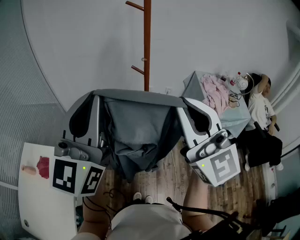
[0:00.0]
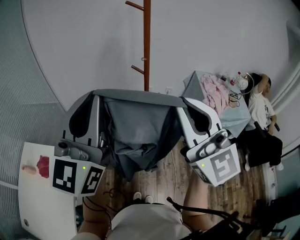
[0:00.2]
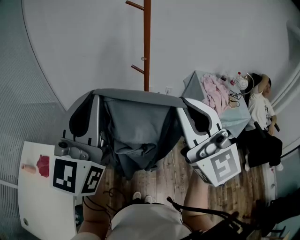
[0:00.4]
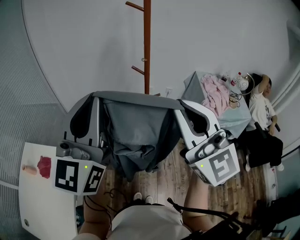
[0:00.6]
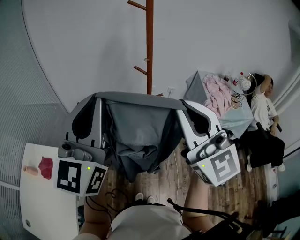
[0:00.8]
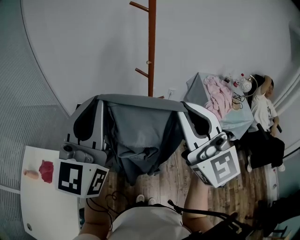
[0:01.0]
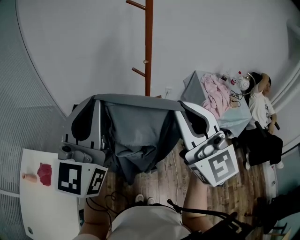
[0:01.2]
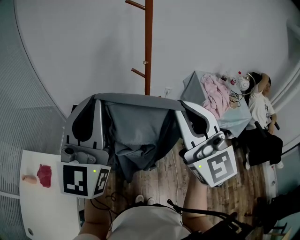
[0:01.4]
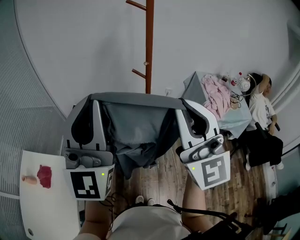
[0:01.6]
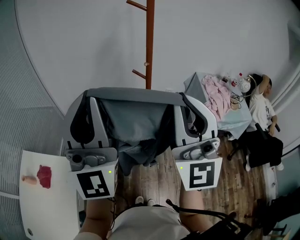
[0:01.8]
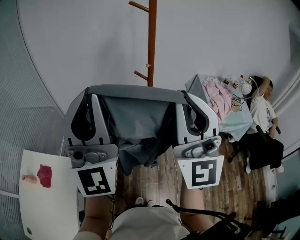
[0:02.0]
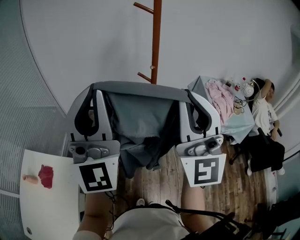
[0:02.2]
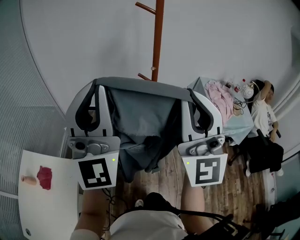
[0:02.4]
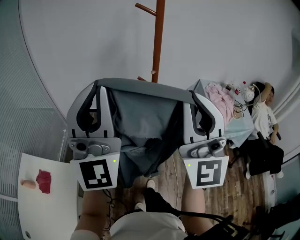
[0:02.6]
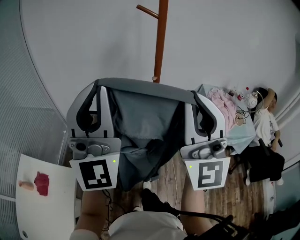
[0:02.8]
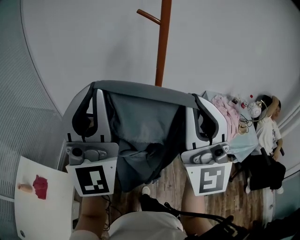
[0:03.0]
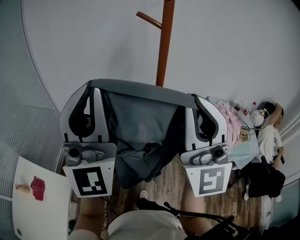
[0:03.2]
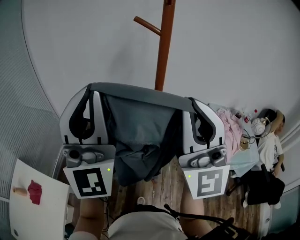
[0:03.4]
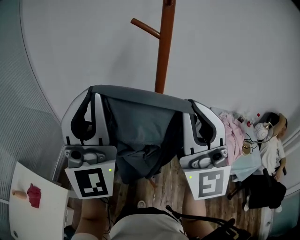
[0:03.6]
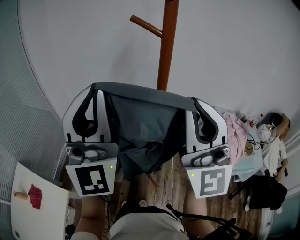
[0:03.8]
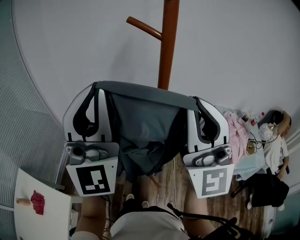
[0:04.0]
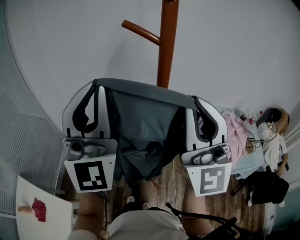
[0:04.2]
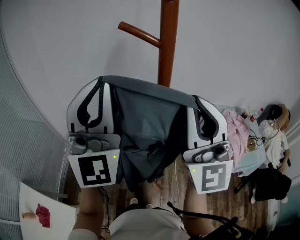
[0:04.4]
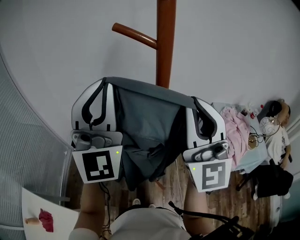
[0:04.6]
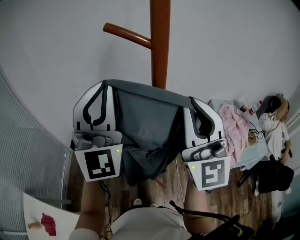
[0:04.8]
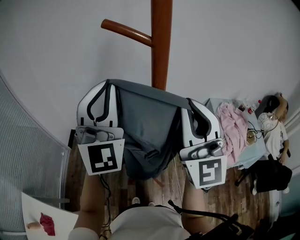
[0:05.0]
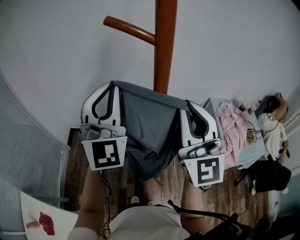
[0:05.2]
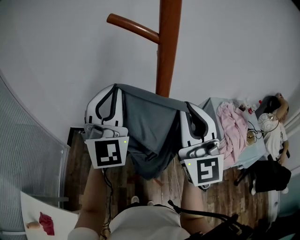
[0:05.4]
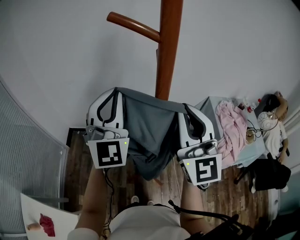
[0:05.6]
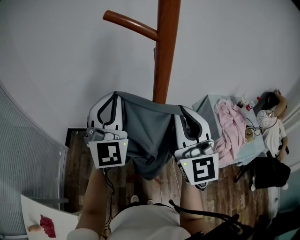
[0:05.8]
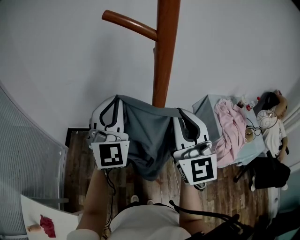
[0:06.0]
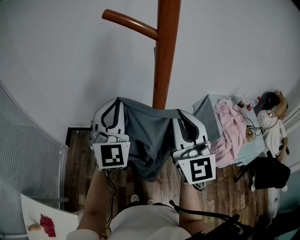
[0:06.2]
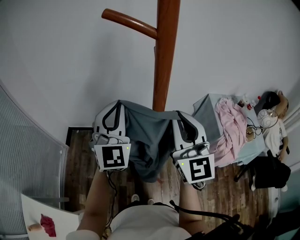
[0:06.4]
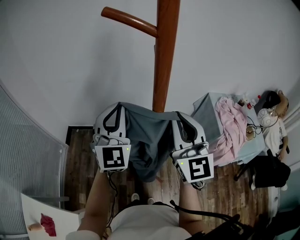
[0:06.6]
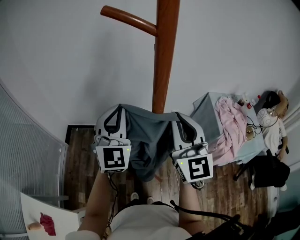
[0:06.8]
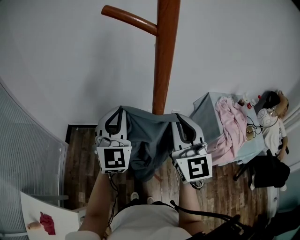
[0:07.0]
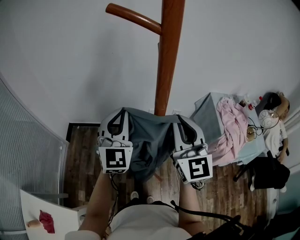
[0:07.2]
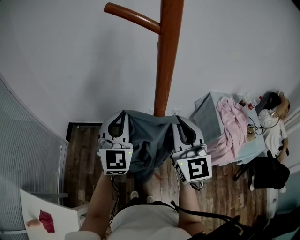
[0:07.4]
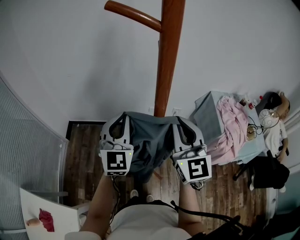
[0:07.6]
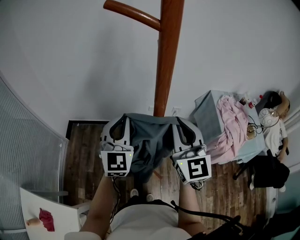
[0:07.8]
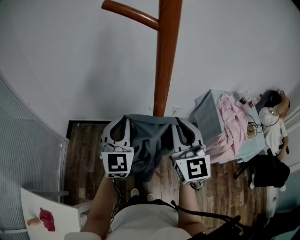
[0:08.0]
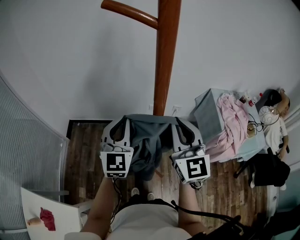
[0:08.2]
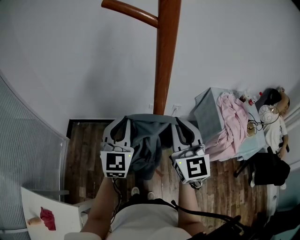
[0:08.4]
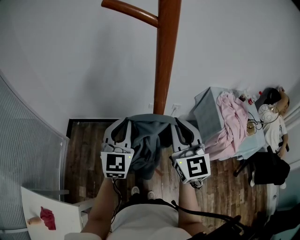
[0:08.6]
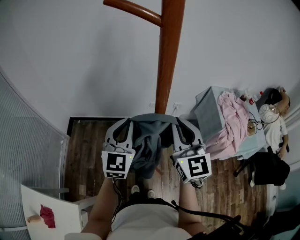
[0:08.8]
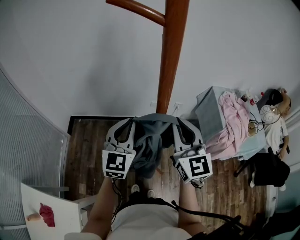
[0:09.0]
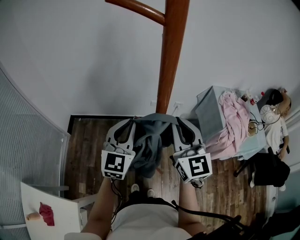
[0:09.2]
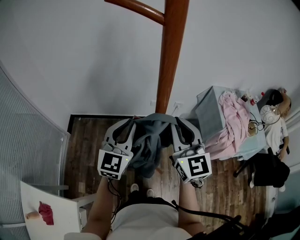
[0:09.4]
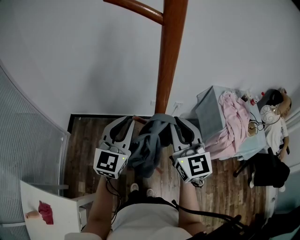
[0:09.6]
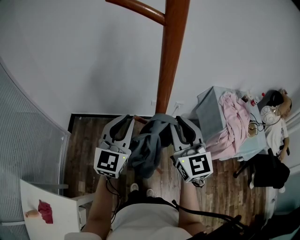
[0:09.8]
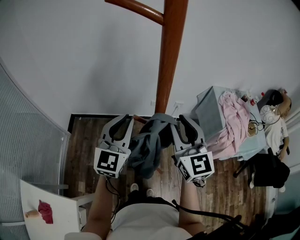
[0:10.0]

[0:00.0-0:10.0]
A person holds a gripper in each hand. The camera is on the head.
0:00.0 to 0:01.4: The grippers stay close to where they were, moving slightly.
0:01.4 to 0:02.8: Both grippers move forward, some 5 cm. The right gripper swivels about 20 degrees. The left gripper turns by some 20 degrees.
0:02.8 to 0:04.2: Both grippers move forward, about 15 cm.
0:04.2 to 0:05.8: The left gripper heads forward and downward, covering roughly 20 cm. Meanwhile the right gripper moves downward and forward, approximately 15 cm.
0:05.8 to 0:07.2: Both grippers move downward, roughly 10 cm.
0:07.2 to 0:08.6: The left gripper shifts roughly 5 cm downward.
0:08.6 to 0:10.0: The right gripper opens its fingers.

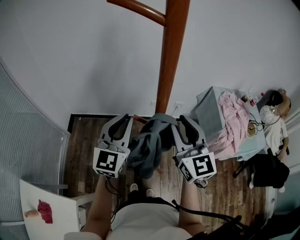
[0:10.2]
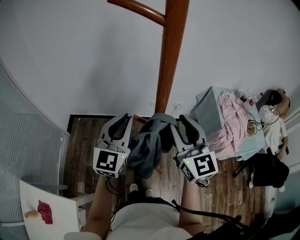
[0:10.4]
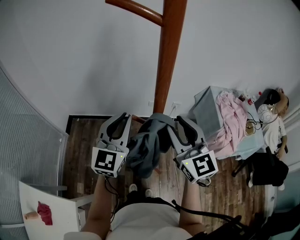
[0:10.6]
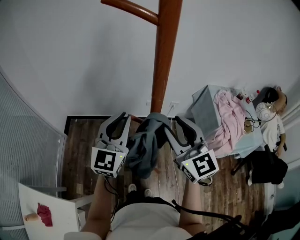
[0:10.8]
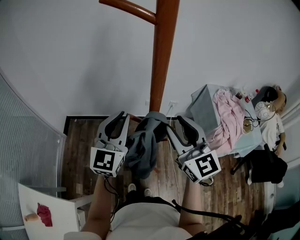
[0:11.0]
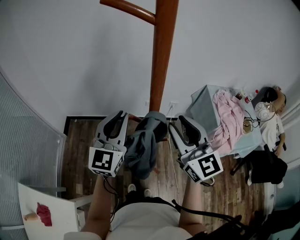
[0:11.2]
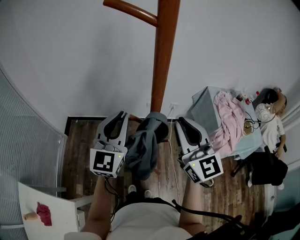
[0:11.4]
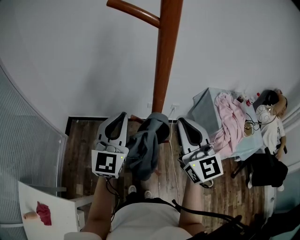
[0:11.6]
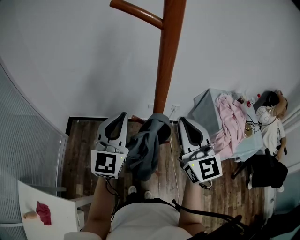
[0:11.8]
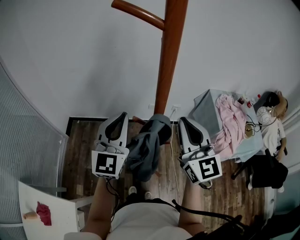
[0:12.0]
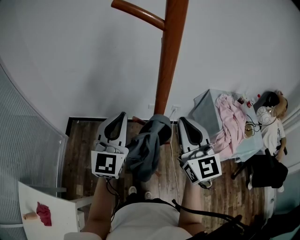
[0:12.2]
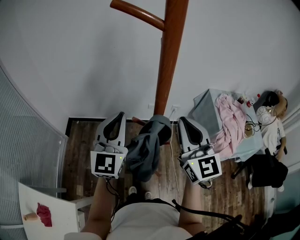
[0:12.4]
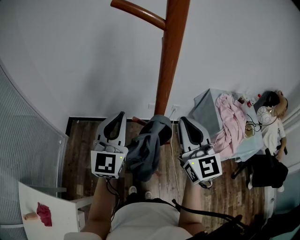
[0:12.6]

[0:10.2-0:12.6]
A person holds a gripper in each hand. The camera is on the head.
0:10.2 to 0:12.6: The grippers move only a little.

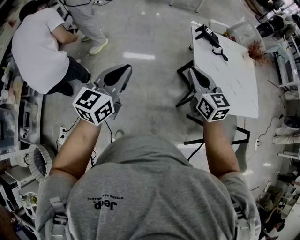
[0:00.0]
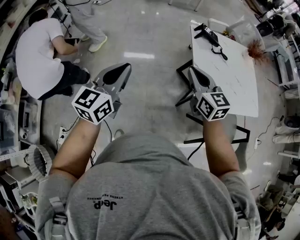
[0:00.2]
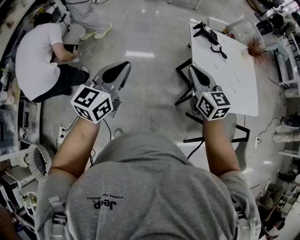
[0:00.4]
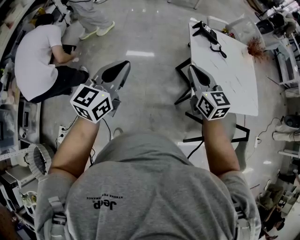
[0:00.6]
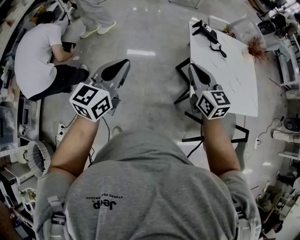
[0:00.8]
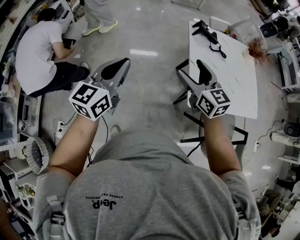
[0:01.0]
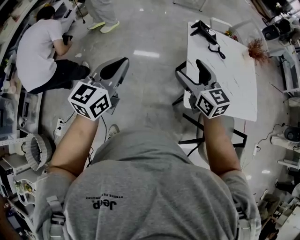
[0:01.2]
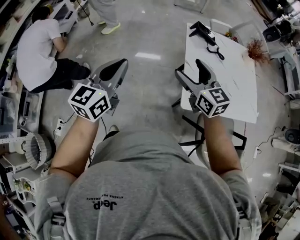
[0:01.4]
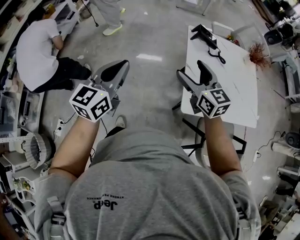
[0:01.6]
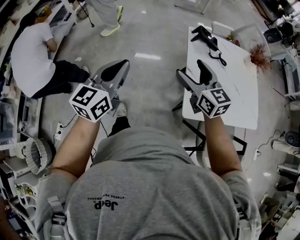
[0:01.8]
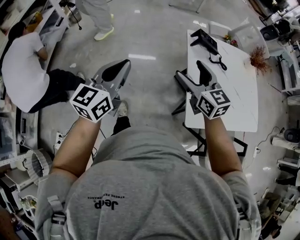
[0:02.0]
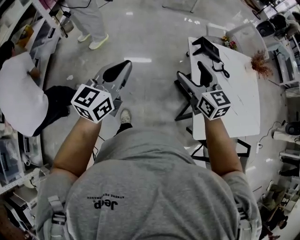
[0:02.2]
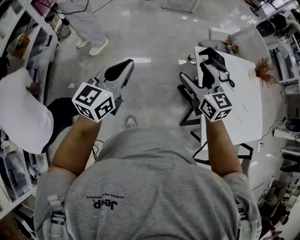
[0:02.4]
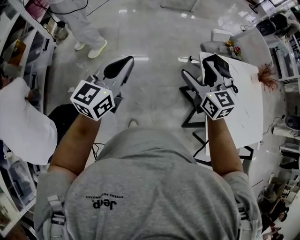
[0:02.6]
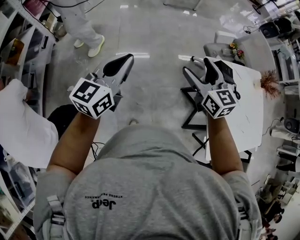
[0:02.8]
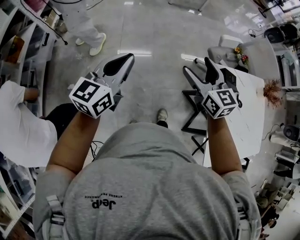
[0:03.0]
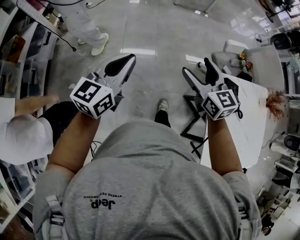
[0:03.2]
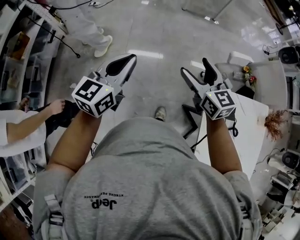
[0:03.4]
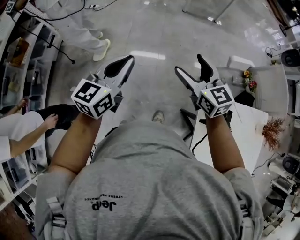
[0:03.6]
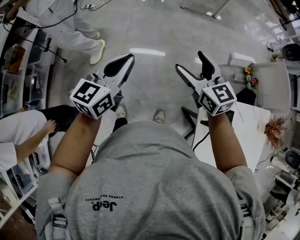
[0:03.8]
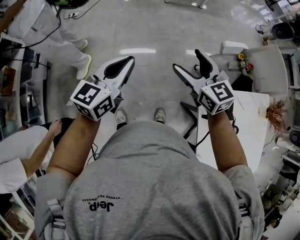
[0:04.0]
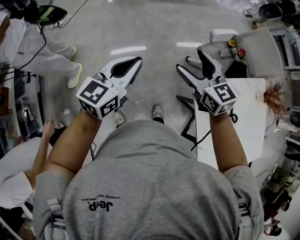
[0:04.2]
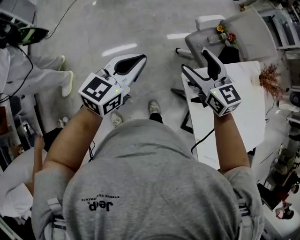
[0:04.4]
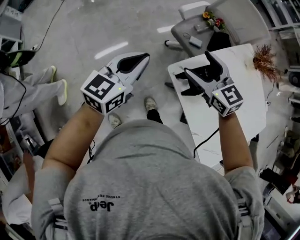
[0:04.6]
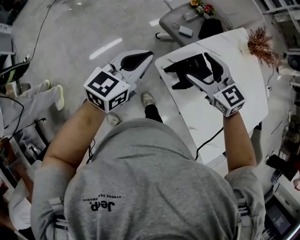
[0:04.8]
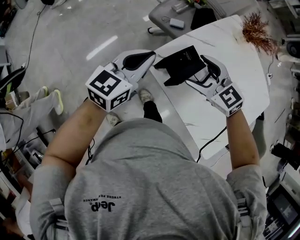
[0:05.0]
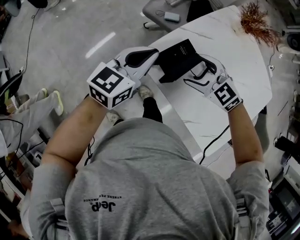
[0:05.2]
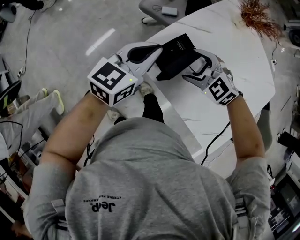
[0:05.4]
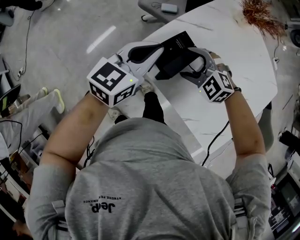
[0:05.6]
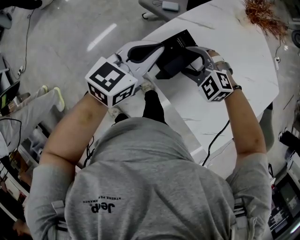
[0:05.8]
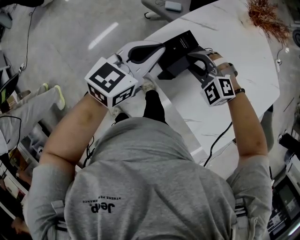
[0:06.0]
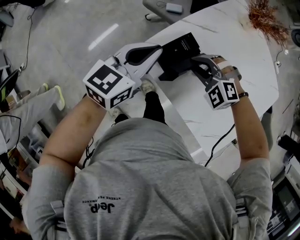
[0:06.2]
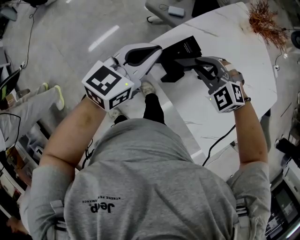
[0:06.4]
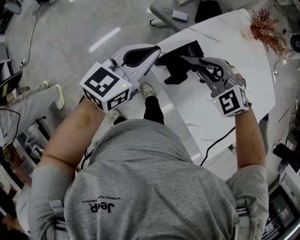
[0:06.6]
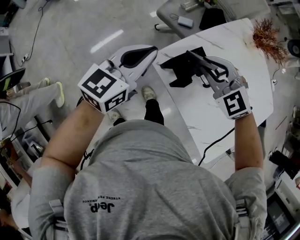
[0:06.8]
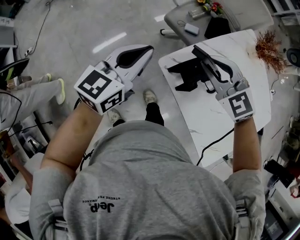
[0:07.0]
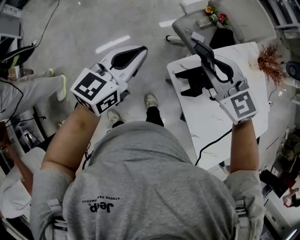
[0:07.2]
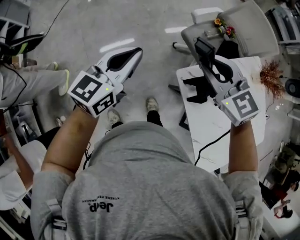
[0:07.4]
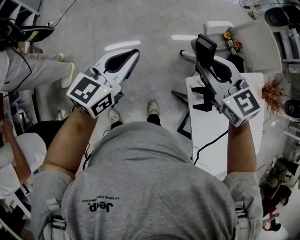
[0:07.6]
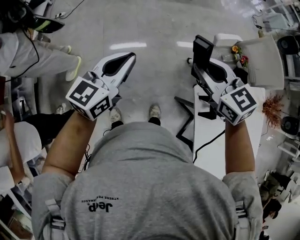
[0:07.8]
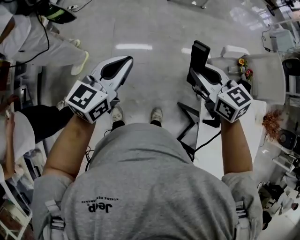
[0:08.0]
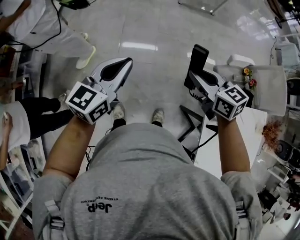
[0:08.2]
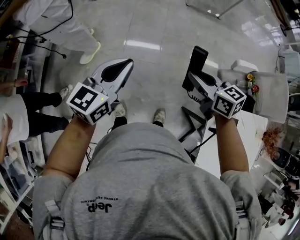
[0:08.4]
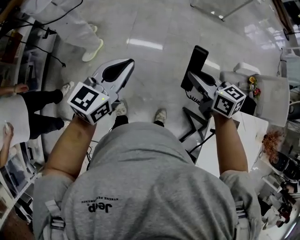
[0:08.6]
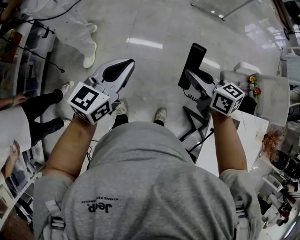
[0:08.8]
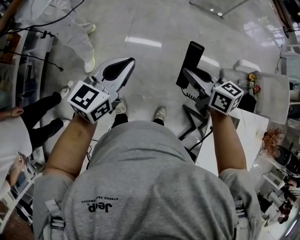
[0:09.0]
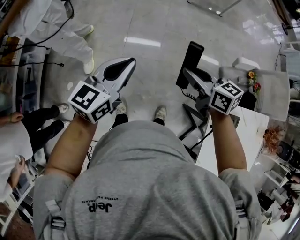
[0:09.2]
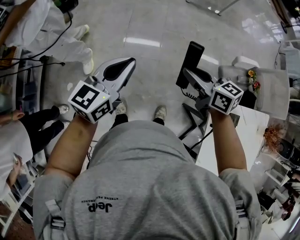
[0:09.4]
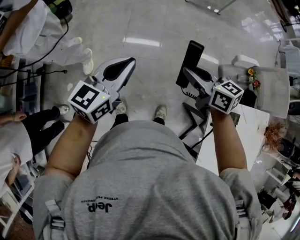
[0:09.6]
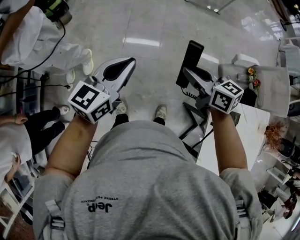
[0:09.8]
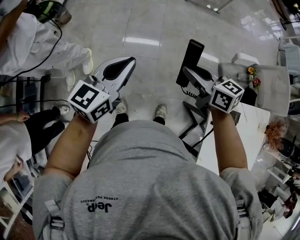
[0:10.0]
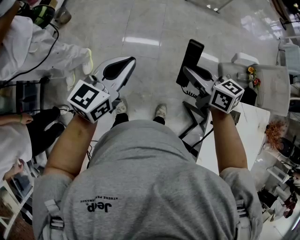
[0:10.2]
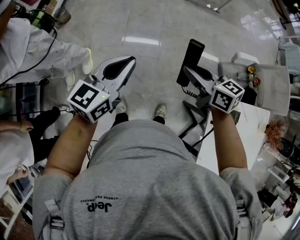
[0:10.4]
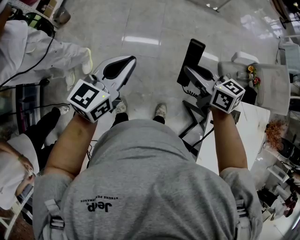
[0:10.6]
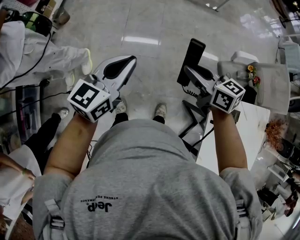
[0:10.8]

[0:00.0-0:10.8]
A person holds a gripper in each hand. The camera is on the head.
0:00.0 to 0:01.6: Both grippers travel together to the right, approximately 10 cm. The right gripper opens its fingers.
0:01.6 to 0:03.0: Both grippers are carried forward and to the left, about 50 cm.
0:03.0 to 0:04.6: The right gripper shifts by approximately 30 cm; the left gripper ends up roughly 40 cm from where it was, and swivels roughly 30 degrees.
0:04.6 to 0:06.2: The left gripper moves to the right and downward, some 20 cm; the right gripper heads downward and to the right, covering approximately 25 cm, twists approximately 40 degrees counterclockwise, seen from behind, and closes up.
0:06.2 to 0:07.8: The left gripper moves some 40 cm, and changes its angle by approximately 40 degrees; the right gripper ends up some 40 cm from where it was, and rotates some 40 degrees.
0:07.8 to 0:09.2: The left gripper moves to the left, roughly 15 cm; the right gripper is displaced to the left and downward by some 20 cm, and swivels about 30 degrees.
0:09.2 to 0:10.8: The two grippers keep their place.
